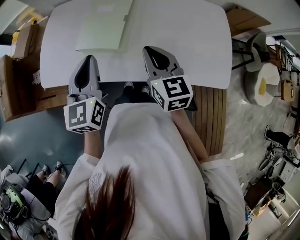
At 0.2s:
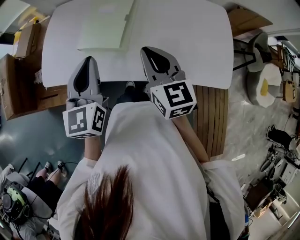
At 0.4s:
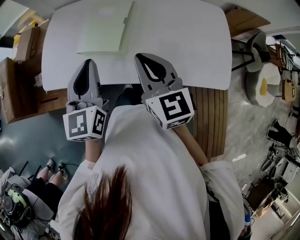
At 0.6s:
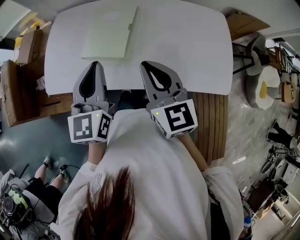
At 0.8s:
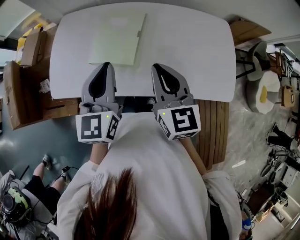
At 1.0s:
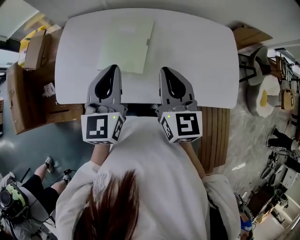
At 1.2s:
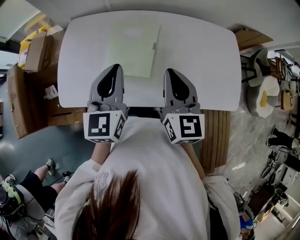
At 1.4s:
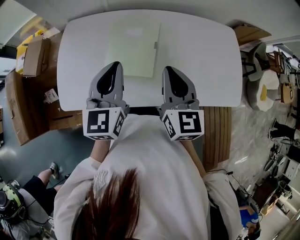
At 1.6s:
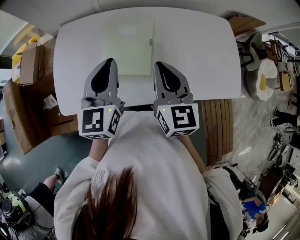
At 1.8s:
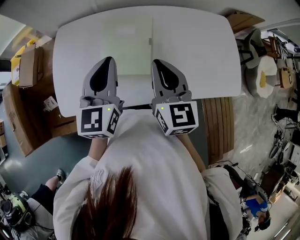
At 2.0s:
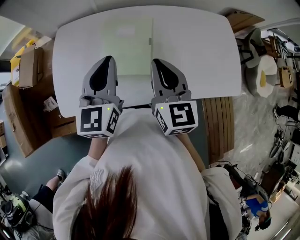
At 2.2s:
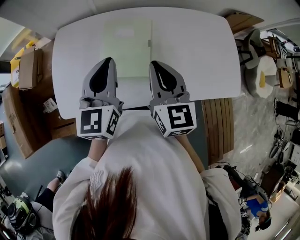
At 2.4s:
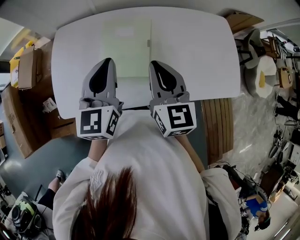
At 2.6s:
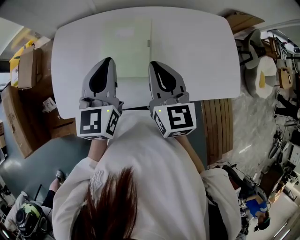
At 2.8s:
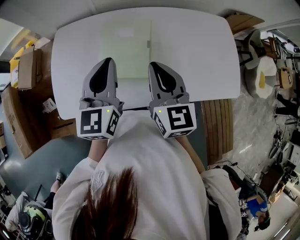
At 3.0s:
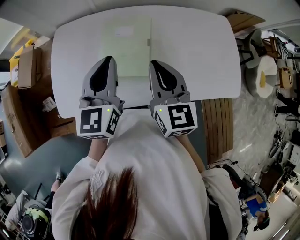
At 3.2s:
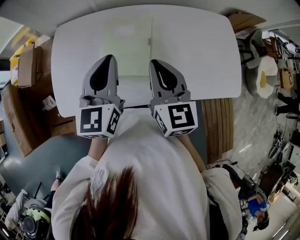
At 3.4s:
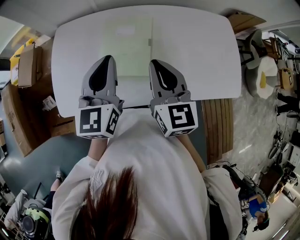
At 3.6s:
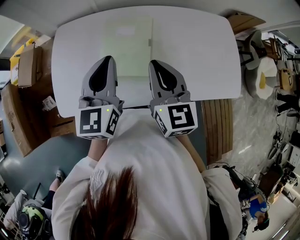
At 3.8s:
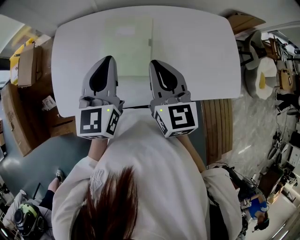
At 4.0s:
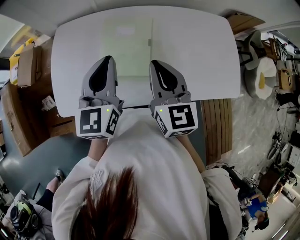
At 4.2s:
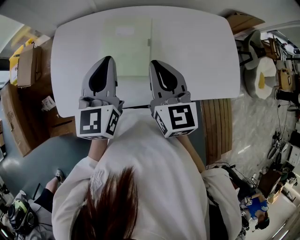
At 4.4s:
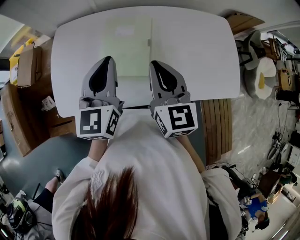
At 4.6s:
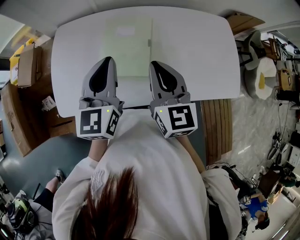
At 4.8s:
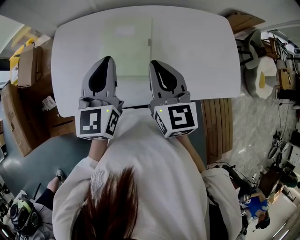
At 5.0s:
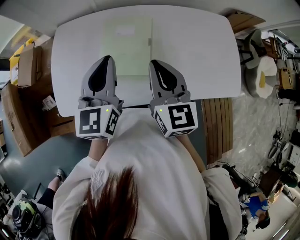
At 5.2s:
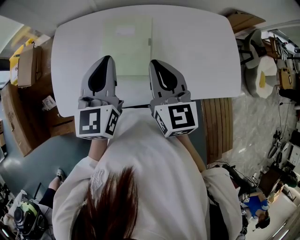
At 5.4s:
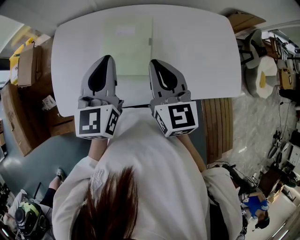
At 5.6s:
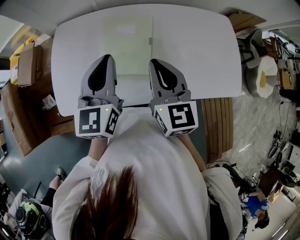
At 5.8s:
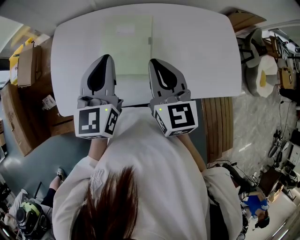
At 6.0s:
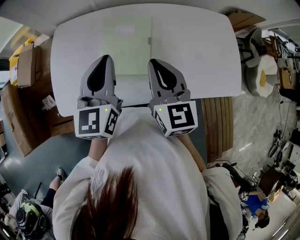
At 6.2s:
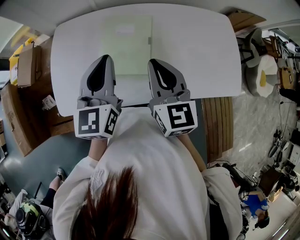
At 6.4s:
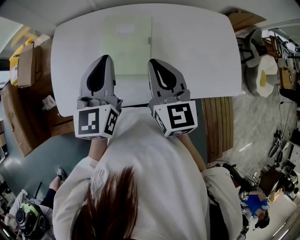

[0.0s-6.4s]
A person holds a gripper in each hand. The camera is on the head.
0.0s to 1.6s: The right gripper heads to the left, forward and upward, covering some 15 cm. The left gripper shifts about 15 cm forward and to the left.
1.6s to 3.2s: The grippers make only small movements.
3.2s to 6.4s: Neither gripper changes place.

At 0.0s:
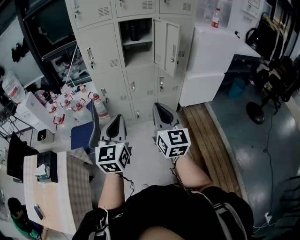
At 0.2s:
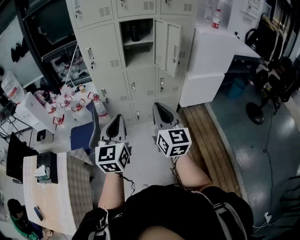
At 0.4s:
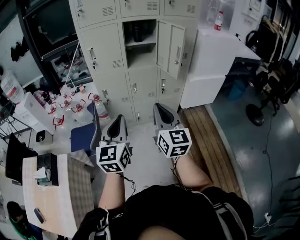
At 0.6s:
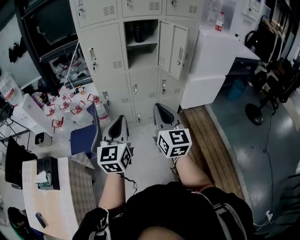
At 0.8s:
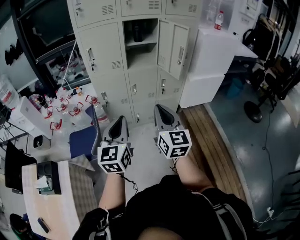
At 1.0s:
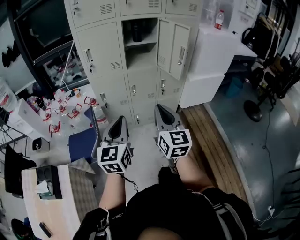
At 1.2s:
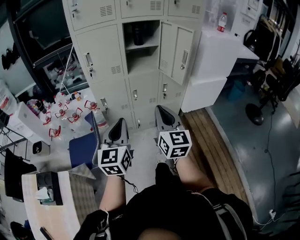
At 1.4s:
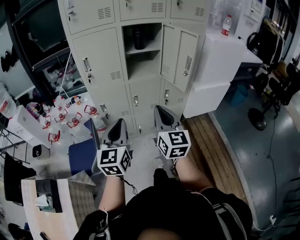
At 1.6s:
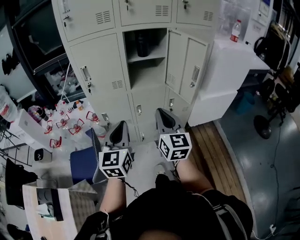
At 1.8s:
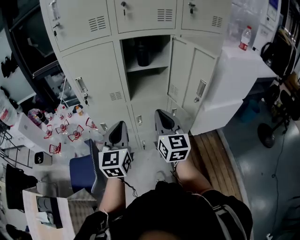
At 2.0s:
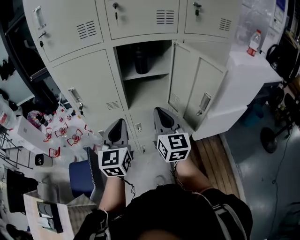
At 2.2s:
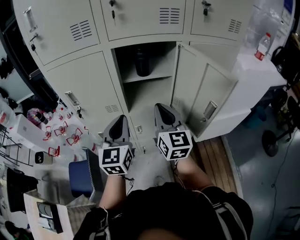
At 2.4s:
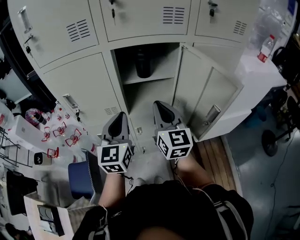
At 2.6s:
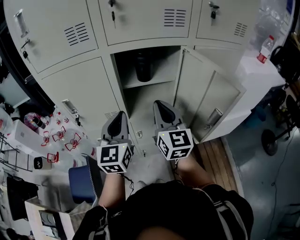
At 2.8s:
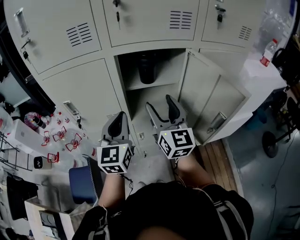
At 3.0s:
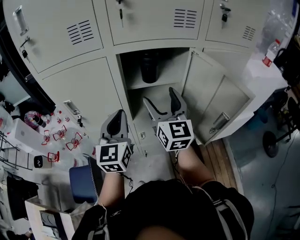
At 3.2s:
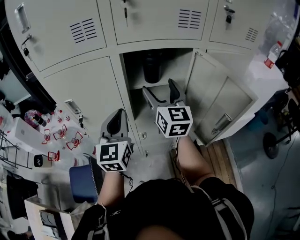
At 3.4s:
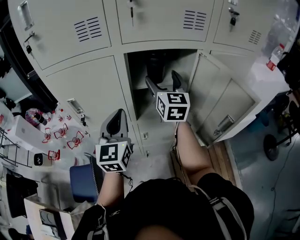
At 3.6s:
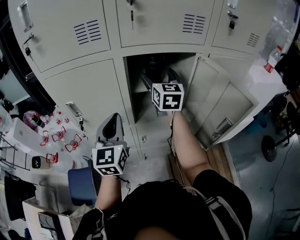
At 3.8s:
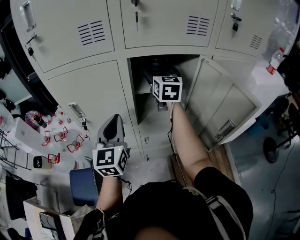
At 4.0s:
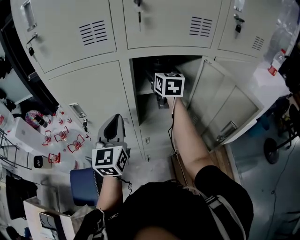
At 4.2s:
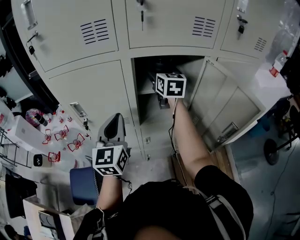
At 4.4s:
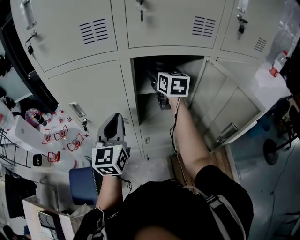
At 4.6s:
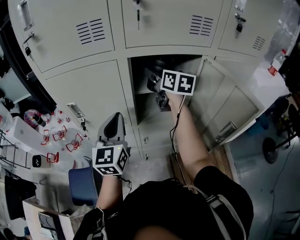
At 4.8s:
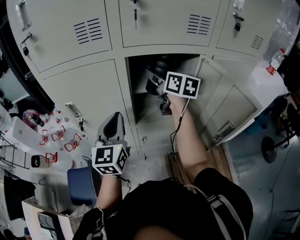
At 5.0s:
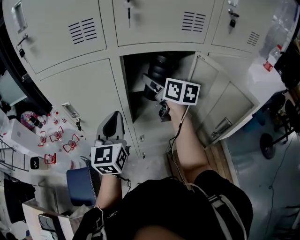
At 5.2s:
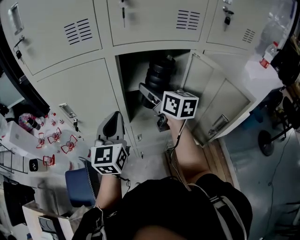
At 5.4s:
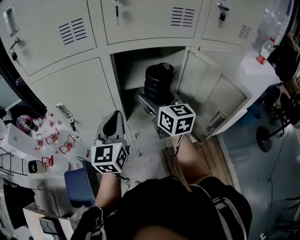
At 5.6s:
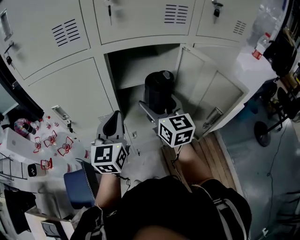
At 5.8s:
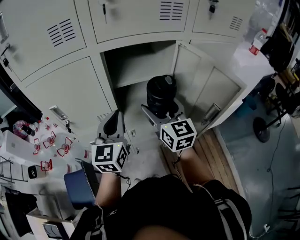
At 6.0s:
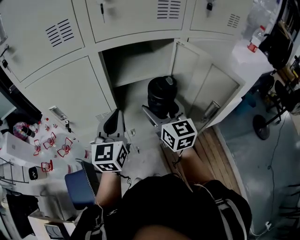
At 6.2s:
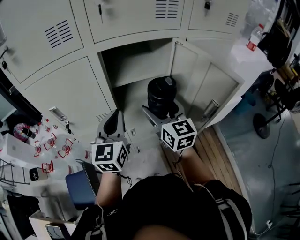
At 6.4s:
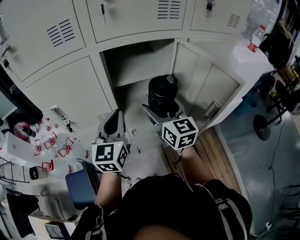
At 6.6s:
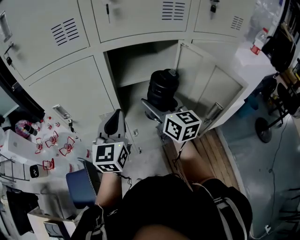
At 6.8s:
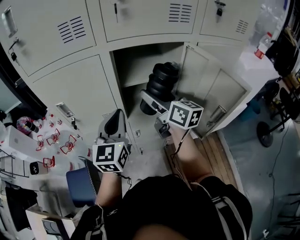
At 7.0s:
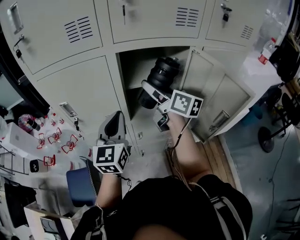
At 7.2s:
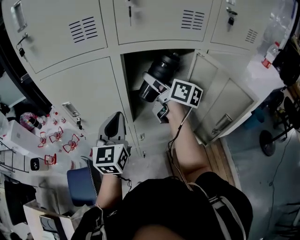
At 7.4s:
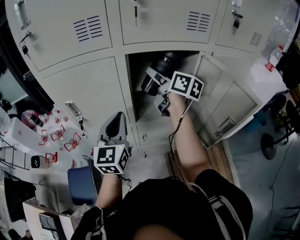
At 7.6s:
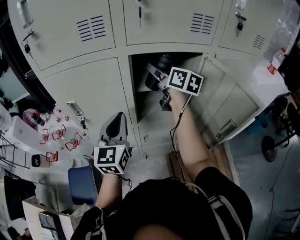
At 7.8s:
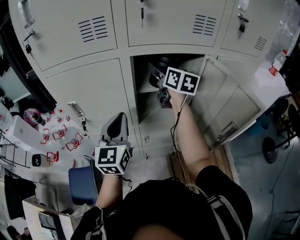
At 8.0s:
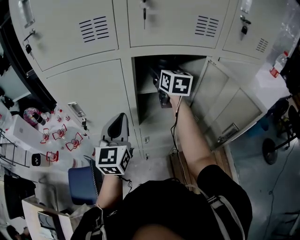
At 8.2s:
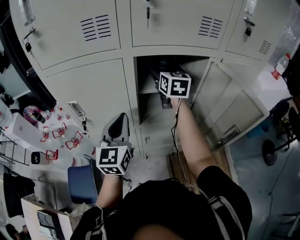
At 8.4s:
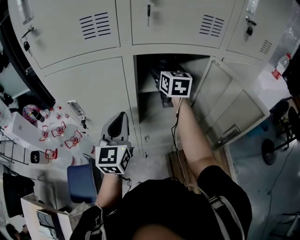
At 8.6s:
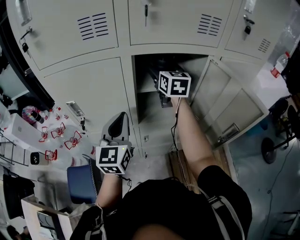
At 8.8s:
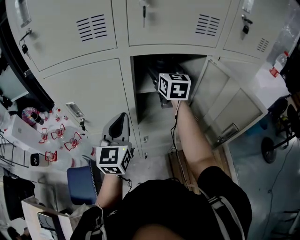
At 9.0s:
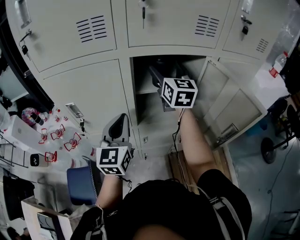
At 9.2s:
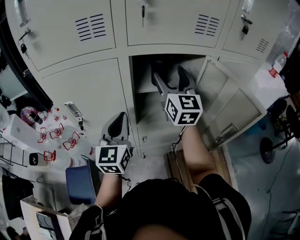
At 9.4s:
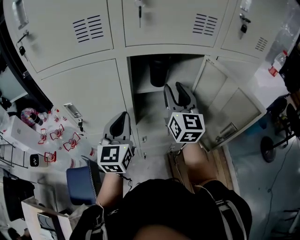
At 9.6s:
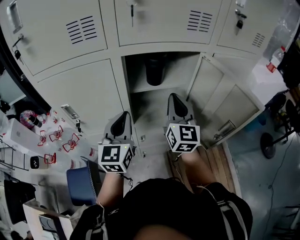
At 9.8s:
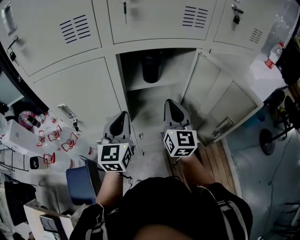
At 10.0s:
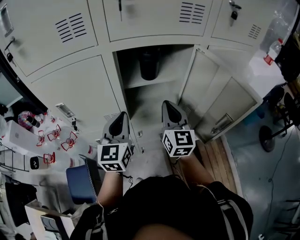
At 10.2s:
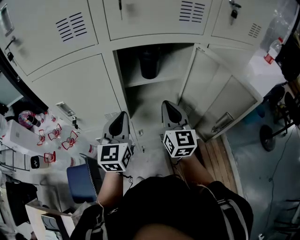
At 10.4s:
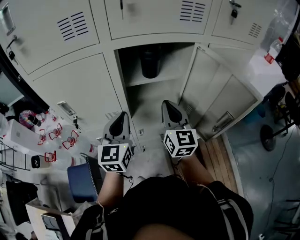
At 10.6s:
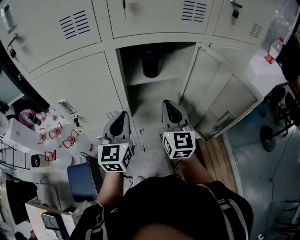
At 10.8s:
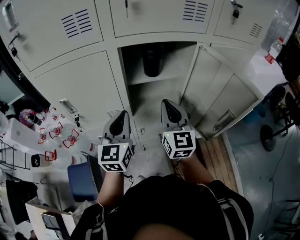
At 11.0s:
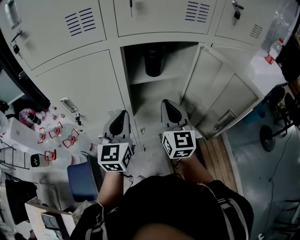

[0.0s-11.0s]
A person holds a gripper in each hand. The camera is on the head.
0.0s to 1.6s: The grippers both shift forward by some 30 cm.
1.6s to 3.2s: Both grippers travel together forward, some 35 cm. The right gripper opens its fingers.
3.2s to 4.8s: The right gripper travels forward by about 10 cm, and rotates roughly 30 degrees.
4.8s to 6.2s: The left gripper moves to the right, roughly 5 cm; the right gripper travels backward and downward by approximately 20 cm, and changes its angle by about 20 degrees.
6.2s to 7.8s: The right gripper moves forward and upward, about 20 cm; the left gripper is displaced to the left by approximately 5 cm.
7.8s to 9.4s: The right gripper moves backward, some 10 cm, turns by roughly 30 degrees, and closes up.
9.4s to 11.0s: The right gripper is displaced backward and downward by some 10 cm, and closes its fingers.

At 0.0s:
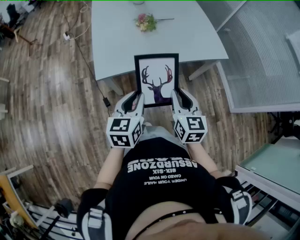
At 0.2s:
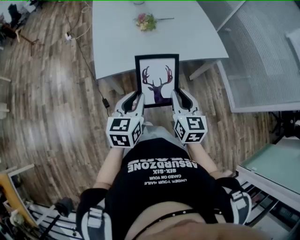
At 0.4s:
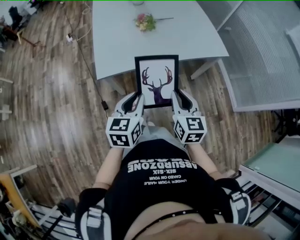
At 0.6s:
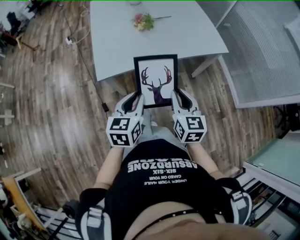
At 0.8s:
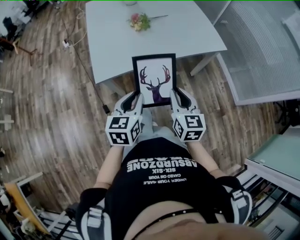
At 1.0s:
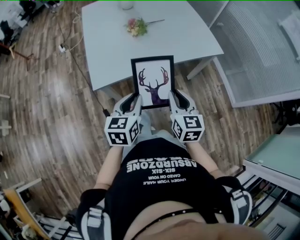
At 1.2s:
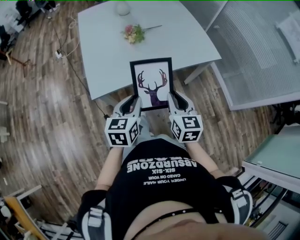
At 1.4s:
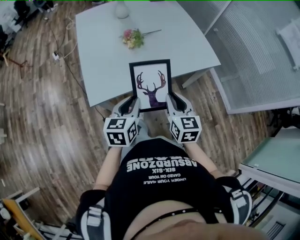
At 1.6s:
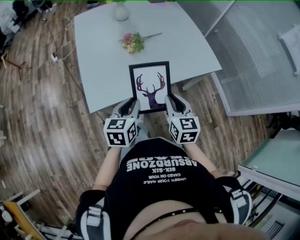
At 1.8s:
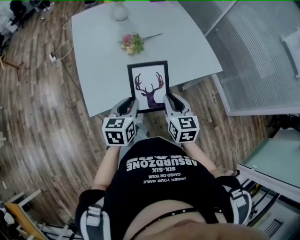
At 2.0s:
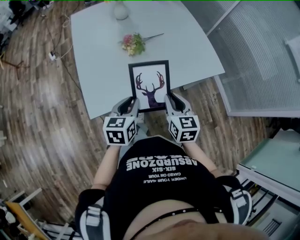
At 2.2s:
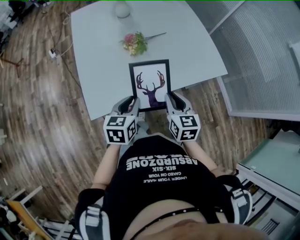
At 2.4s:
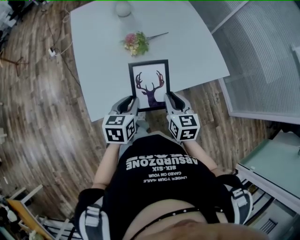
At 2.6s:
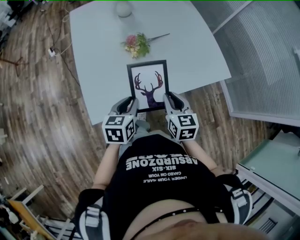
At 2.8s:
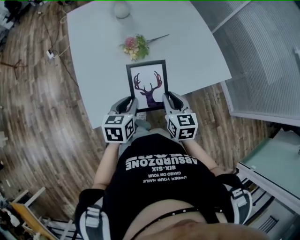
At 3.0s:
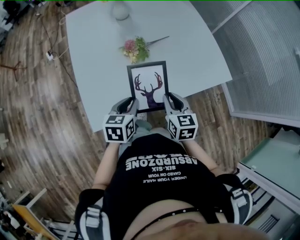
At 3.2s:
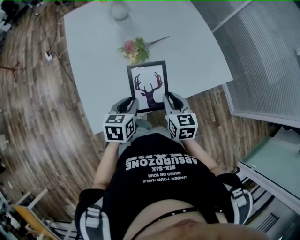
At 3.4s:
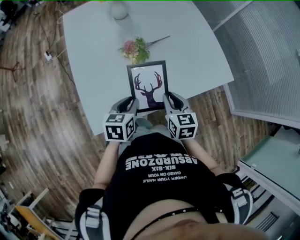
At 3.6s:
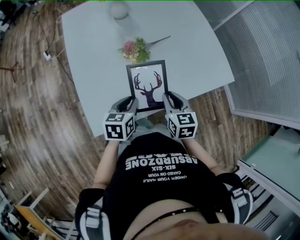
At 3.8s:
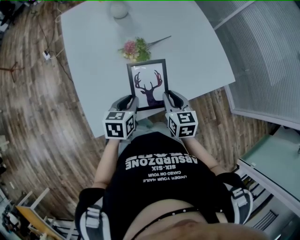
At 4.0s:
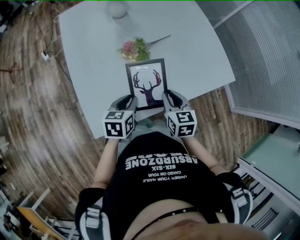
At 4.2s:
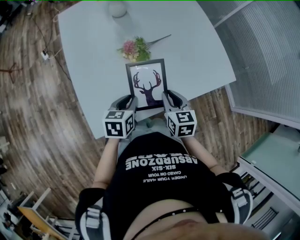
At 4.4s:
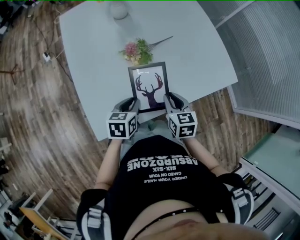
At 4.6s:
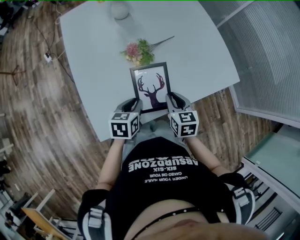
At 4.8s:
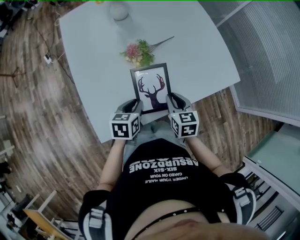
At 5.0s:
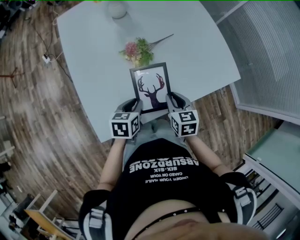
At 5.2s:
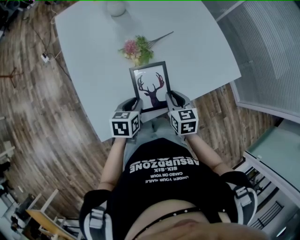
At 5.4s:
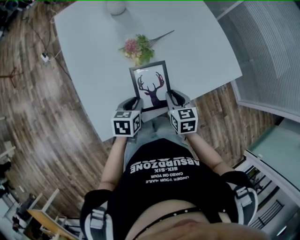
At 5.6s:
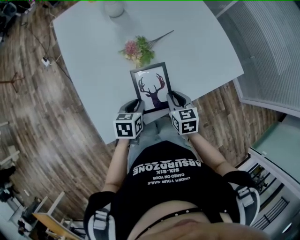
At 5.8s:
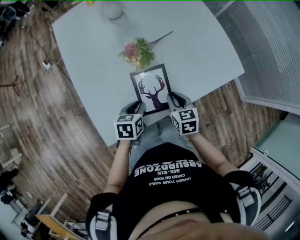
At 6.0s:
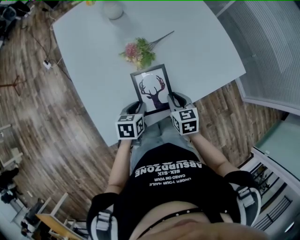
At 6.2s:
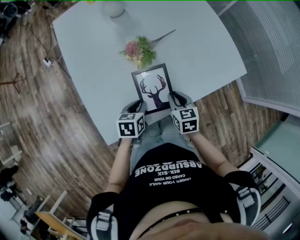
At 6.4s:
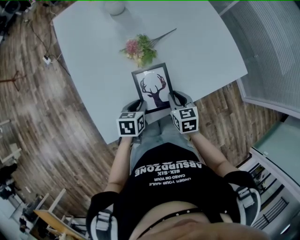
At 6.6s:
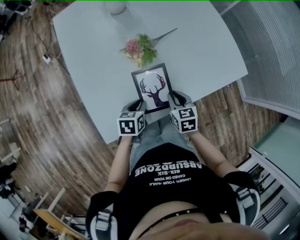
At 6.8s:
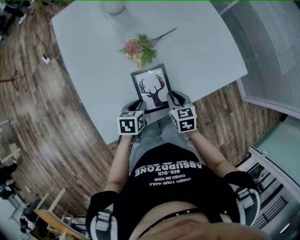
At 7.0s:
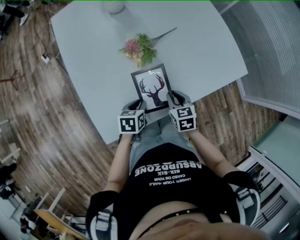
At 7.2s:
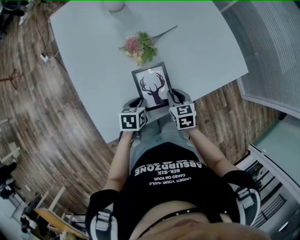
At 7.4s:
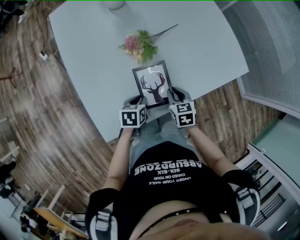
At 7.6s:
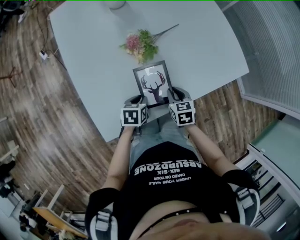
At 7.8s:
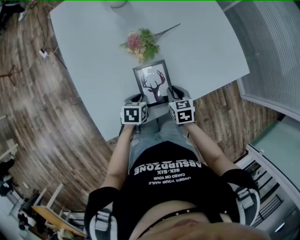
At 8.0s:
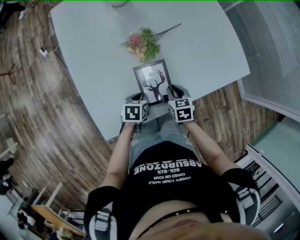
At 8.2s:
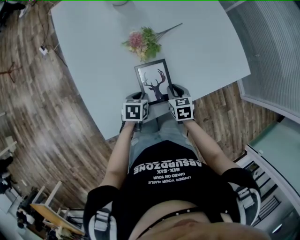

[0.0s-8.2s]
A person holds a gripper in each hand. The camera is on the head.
0.0s to 1.6s: The grippers both shift forward by roughly 15 cm.
1.6s to 3.2s: Both grippers move forward and downward, about 15 cm.
3.2s to 5.0s: Both grippers move downward, about 5 cm.
5.0s to 6.6s: Both grippers move downward, about 5 cm.
6.6s to 8.2s: The grippers both shift downward by approximately 5 cm.
